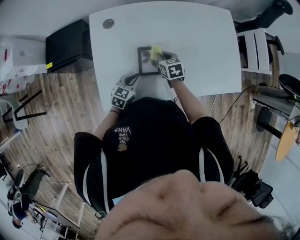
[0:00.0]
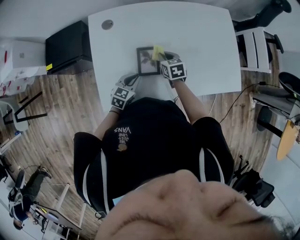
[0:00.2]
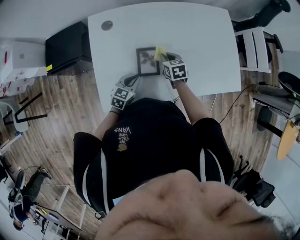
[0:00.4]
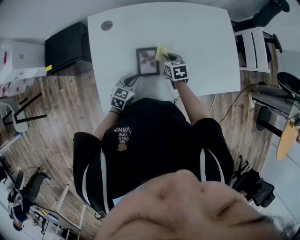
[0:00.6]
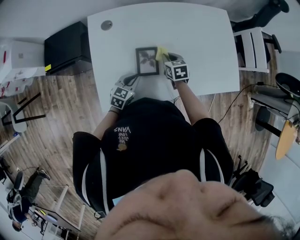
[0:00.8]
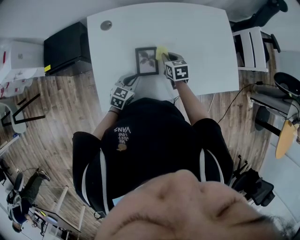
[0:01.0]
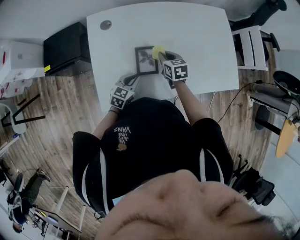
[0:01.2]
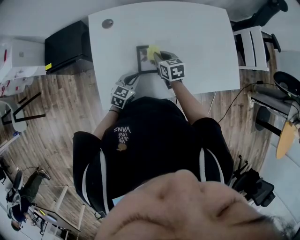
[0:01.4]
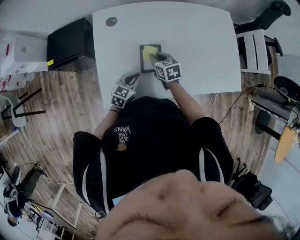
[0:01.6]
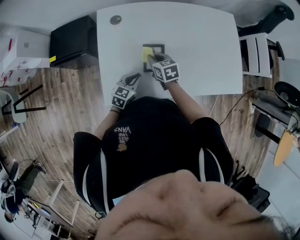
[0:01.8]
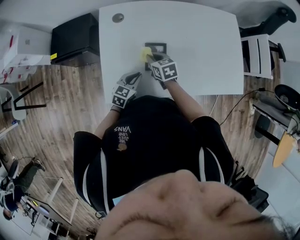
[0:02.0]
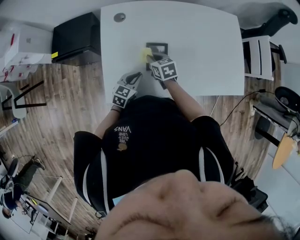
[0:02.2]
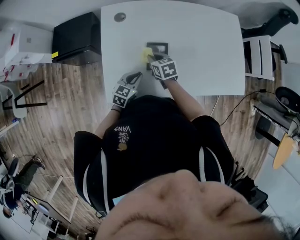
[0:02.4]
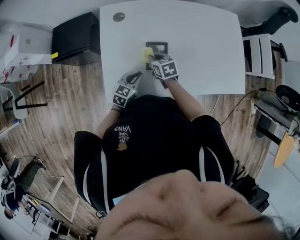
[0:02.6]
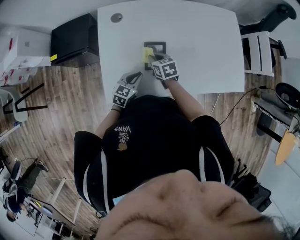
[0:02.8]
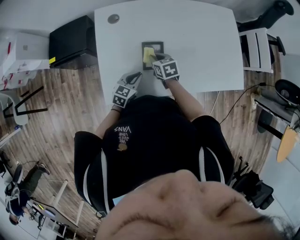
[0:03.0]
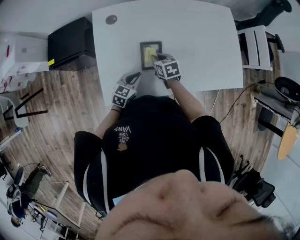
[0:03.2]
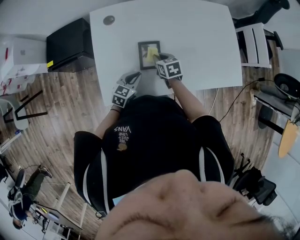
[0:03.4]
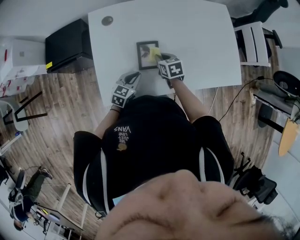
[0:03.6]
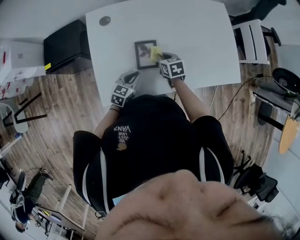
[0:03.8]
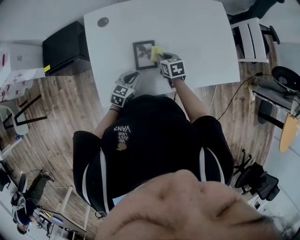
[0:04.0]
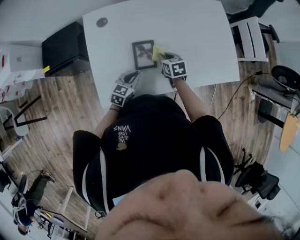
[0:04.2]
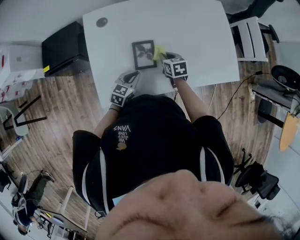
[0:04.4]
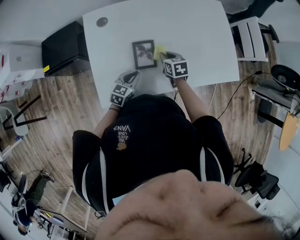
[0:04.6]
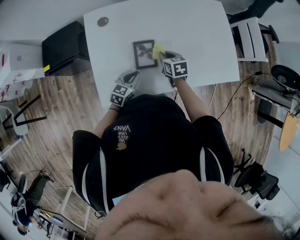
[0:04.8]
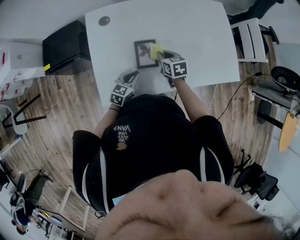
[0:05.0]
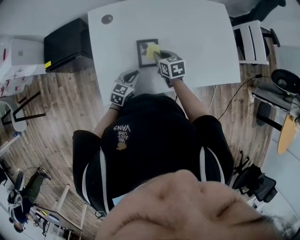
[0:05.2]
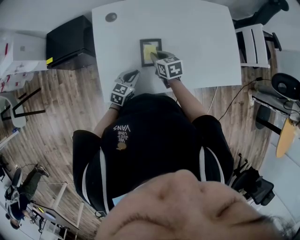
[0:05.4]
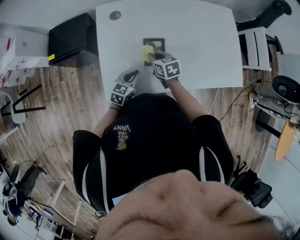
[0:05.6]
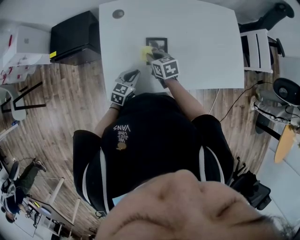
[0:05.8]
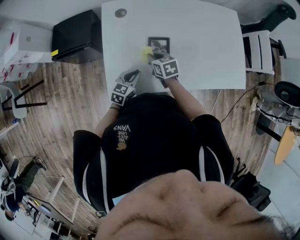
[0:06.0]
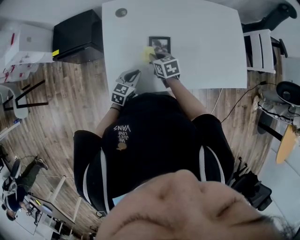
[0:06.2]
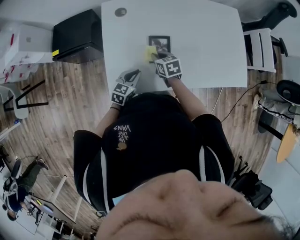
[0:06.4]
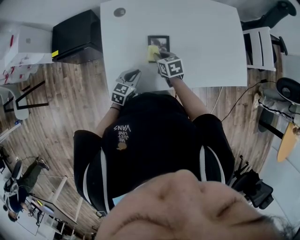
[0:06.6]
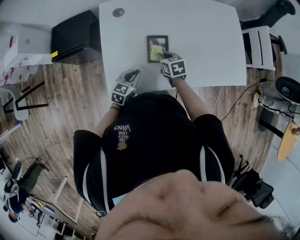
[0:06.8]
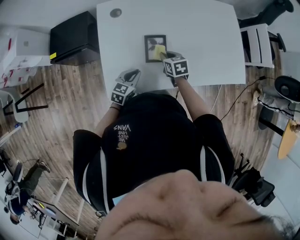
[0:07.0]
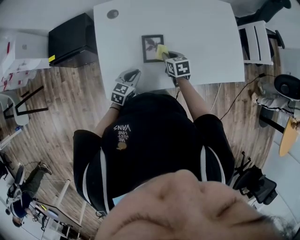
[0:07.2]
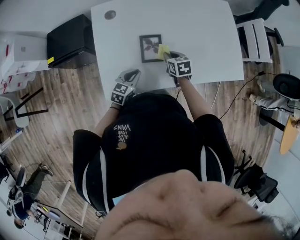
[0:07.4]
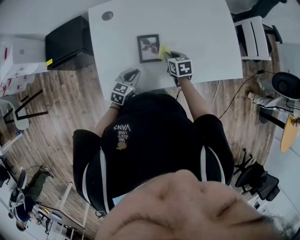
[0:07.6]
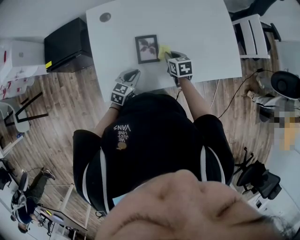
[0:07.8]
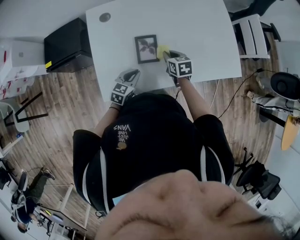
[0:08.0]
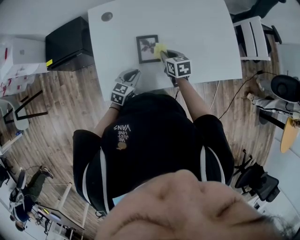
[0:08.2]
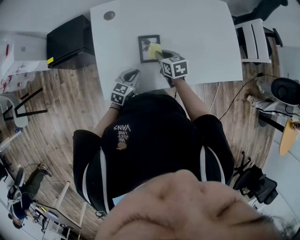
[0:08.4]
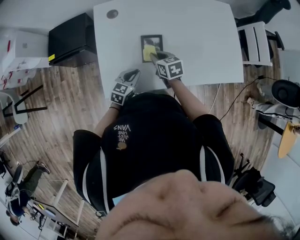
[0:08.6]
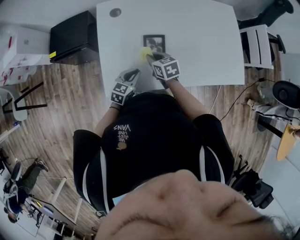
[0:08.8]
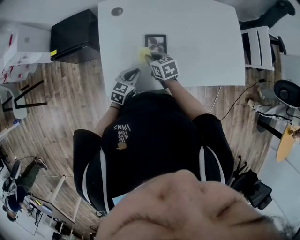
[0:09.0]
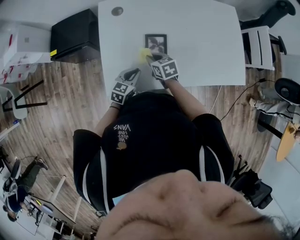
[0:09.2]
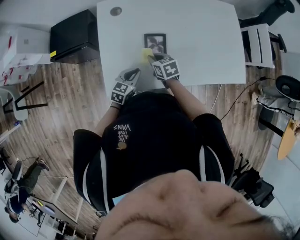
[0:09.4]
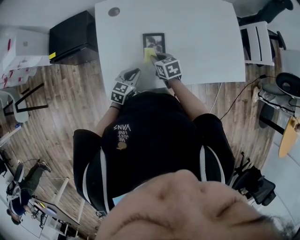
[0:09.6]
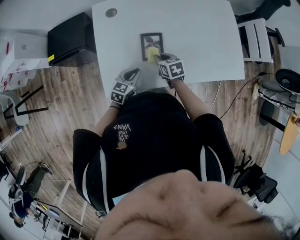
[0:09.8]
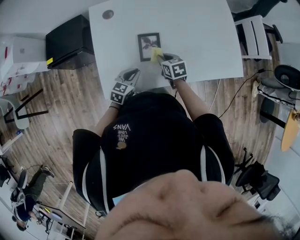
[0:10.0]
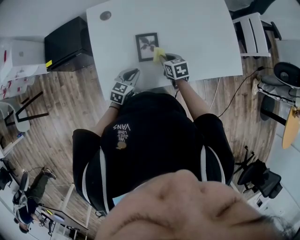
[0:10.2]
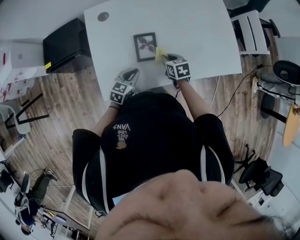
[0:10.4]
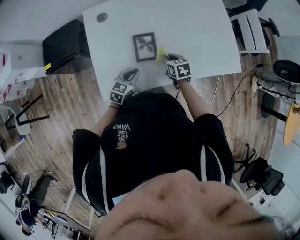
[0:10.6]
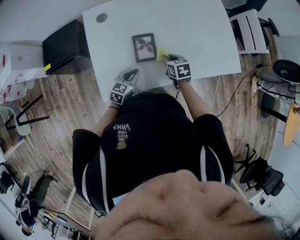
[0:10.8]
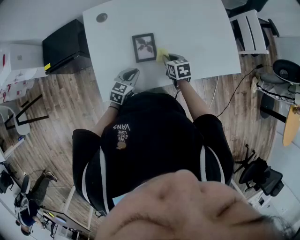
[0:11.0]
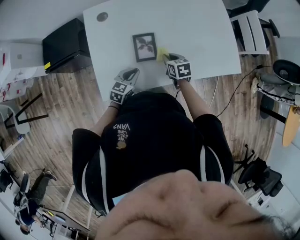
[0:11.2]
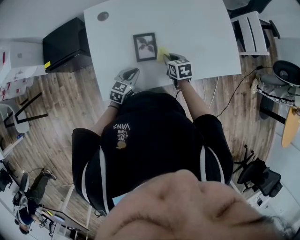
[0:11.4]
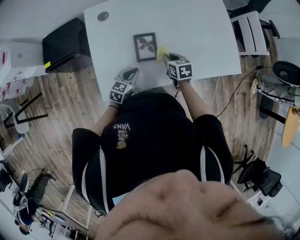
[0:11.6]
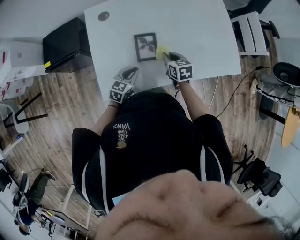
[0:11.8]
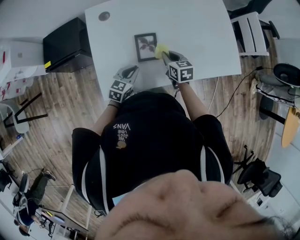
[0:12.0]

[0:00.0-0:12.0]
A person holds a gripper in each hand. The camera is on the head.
0:00.0 to 0:01.6: The right gripper changes place by roughly 5 cm.
0:01.6 to 0:03.0: The grippers move only a little.
0:03.0 to 0:04.4: The right gripper is displaced to the right by approximately 10 cm.
0:04.4 to 0:06.0: The right gripper travels to the left by approximately 15 cm, while the left gripper goes approximately 5 cm to the left.
0:06.0 to 0:07.6: The right gripper heads to the right, covering roughly 15 cm.
0:07.6 to 0:09.0: The right gripper heads to the left, covering approximately 15 cm.
0:09.0 to 0:10.4: The right gripper shifts approximately 10 cm to the right.
0:10.4 to 0:12.0: The grippers move only a little.

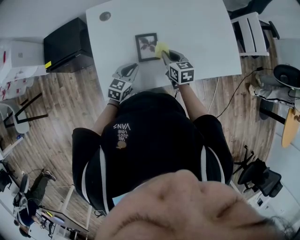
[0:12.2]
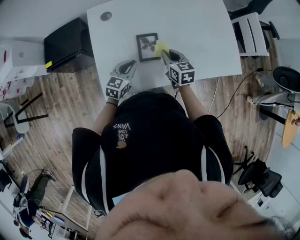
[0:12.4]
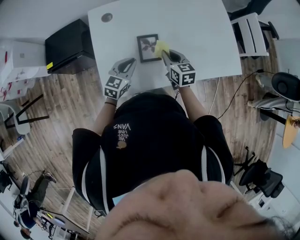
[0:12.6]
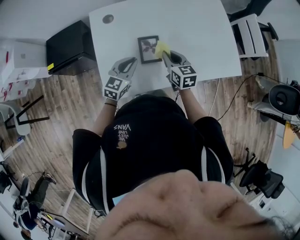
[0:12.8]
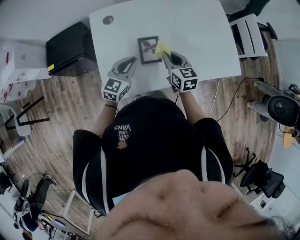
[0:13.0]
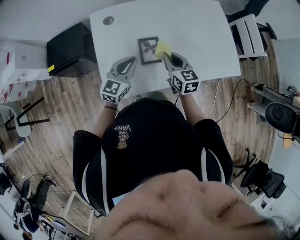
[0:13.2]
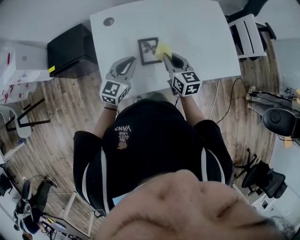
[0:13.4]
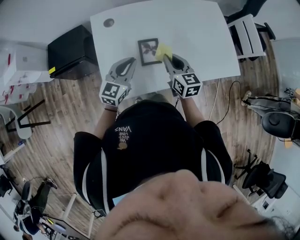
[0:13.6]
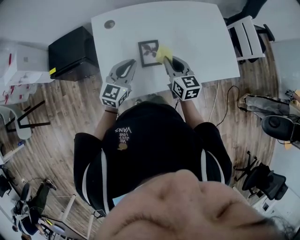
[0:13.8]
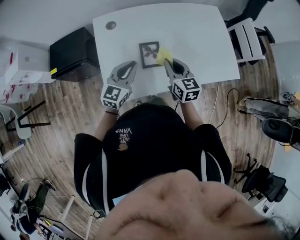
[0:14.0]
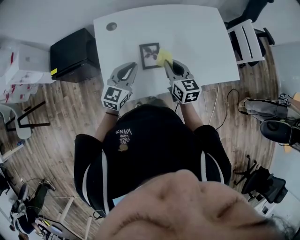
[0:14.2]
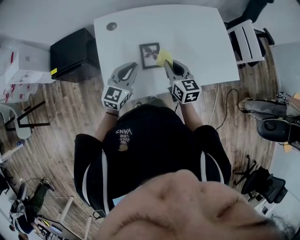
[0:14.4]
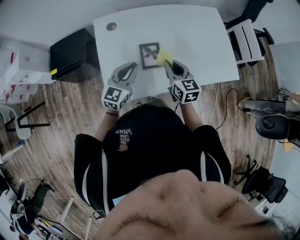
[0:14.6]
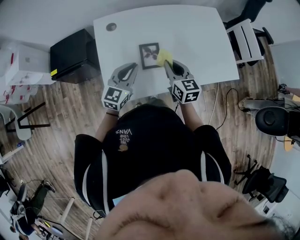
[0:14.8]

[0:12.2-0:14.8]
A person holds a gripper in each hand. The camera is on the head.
0:12.2 to 0:13.4: The two grippers go roughly 10 cm upward.
0:13.4 to 0:14.8: The grippers stay close to where they were, moving slightly.

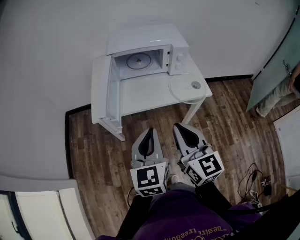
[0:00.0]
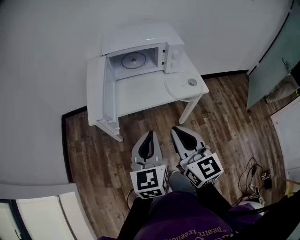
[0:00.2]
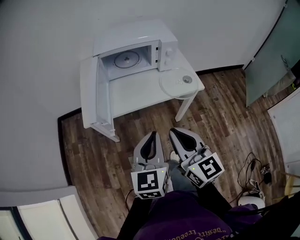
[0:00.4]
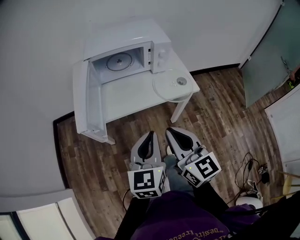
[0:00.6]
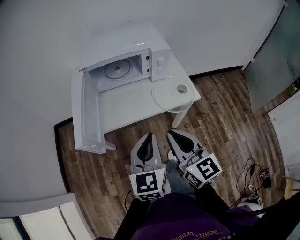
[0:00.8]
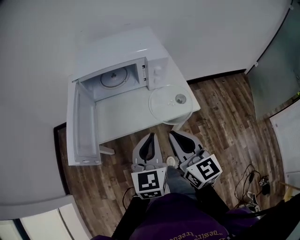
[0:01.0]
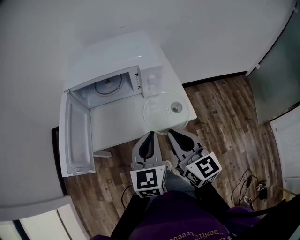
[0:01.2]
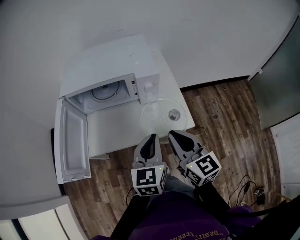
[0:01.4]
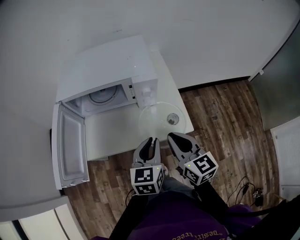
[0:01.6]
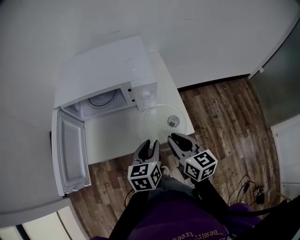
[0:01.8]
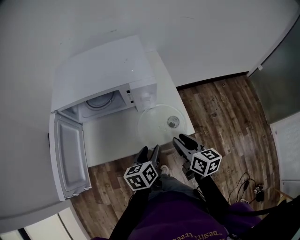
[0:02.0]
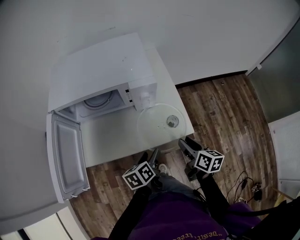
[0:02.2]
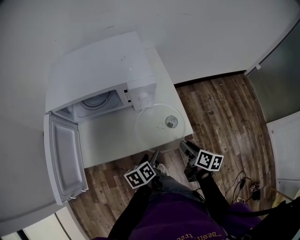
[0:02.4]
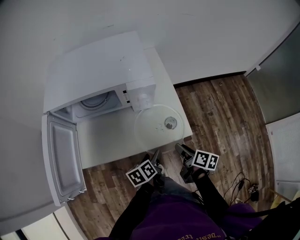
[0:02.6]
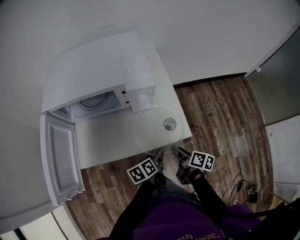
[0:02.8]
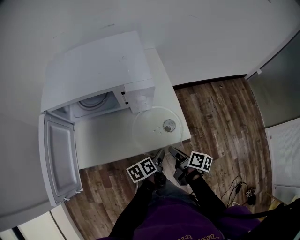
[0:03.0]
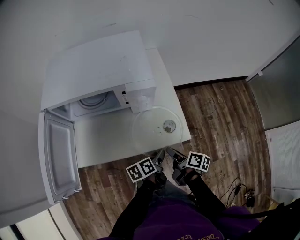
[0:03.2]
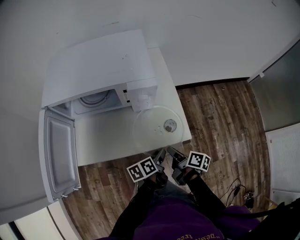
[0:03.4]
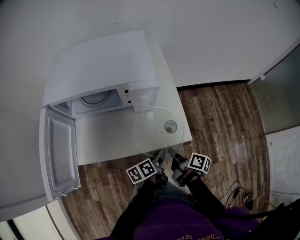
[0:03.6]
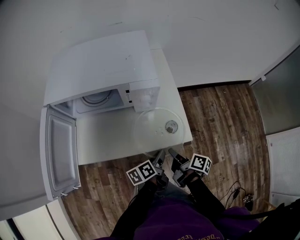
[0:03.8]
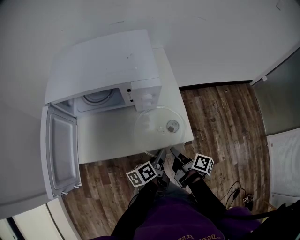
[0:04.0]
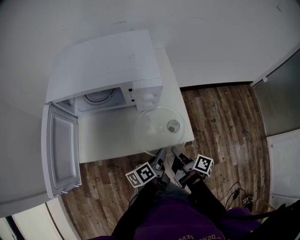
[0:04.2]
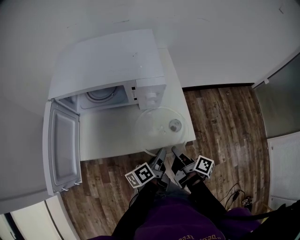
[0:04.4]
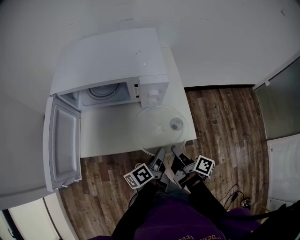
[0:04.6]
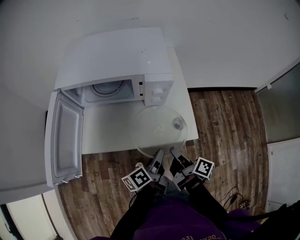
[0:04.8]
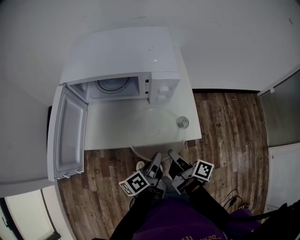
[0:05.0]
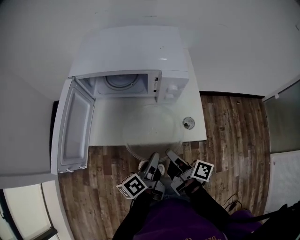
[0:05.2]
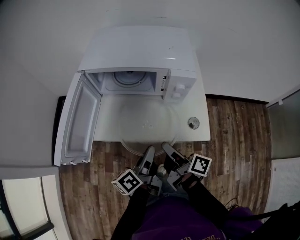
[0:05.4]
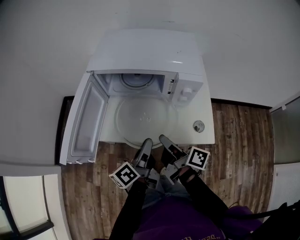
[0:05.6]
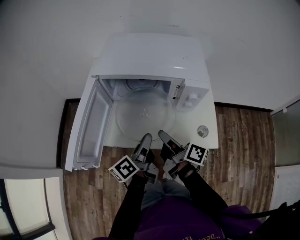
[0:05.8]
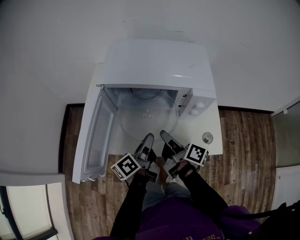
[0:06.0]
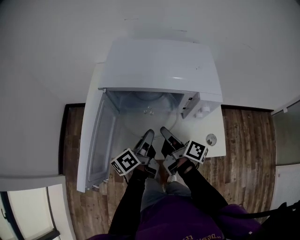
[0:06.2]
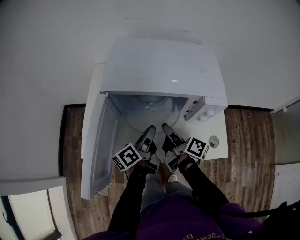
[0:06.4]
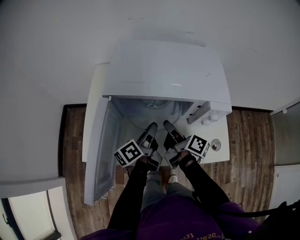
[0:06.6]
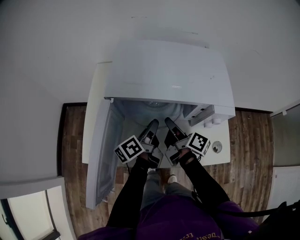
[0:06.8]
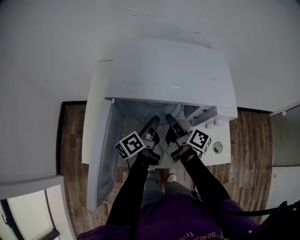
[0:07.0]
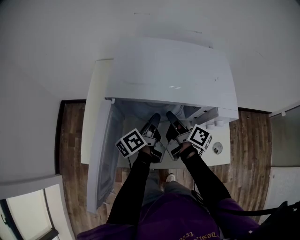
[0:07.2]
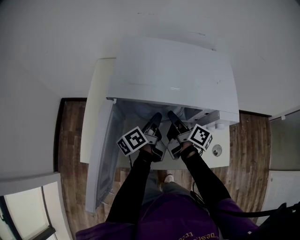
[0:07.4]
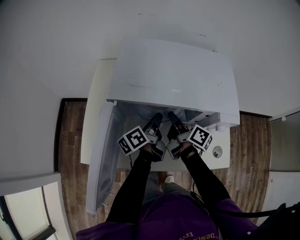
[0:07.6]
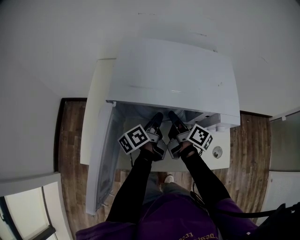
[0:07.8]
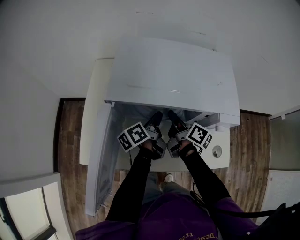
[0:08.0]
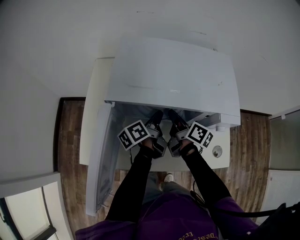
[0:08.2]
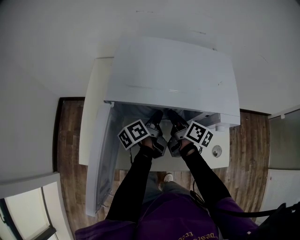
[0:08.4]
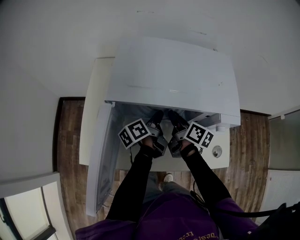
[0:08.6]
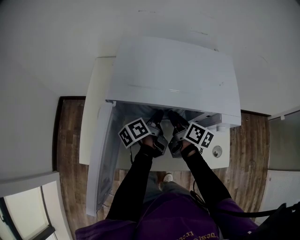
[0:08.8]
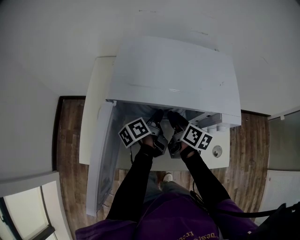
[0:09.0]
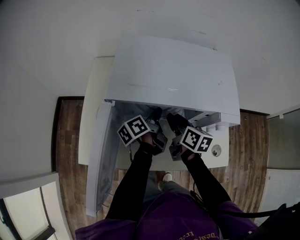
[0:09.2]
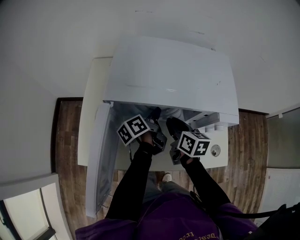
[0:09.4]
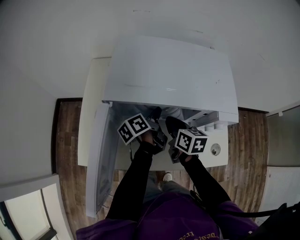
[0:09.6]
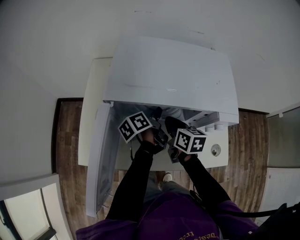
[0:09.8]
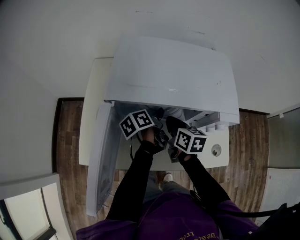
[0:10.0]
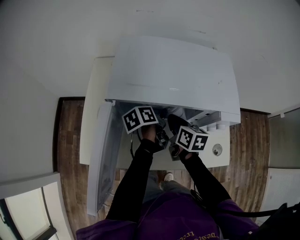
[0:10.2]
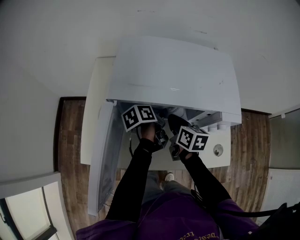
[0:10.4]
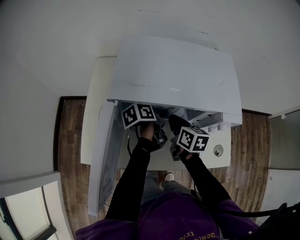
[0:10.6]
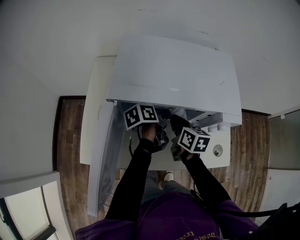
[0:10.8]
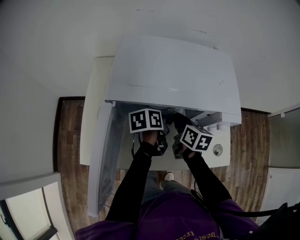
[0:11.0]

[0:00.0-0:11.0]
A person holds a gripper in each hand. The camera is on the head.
0:00.0 to 0:01.6: The left gripper heads to the right, forward and downward, covering about 35 cm, while the right gripper shifts roughly 30 cm forward, to the right and downward.
0:01.6 to 0:03.2: The two grippers go some 20 cm downward. The left gripper rotates around the line of its fingers by roughly 50 degrees, counterclockwise from behind, and opens up, while the right gripper rolls clockwise, seen from behind, by roughly 60 degrees, and opens its fingers.
0:03.2 to 0:04.8: Both grippers travel together upward, approximately 5 cm. The left gripper swivels some 30 degrees, and closes up. Meanwhile the right gripper closes up.
0:04.8 to 0:06.2: The grippers both shift to the left and forward by roughly 25 cm.
0:06.2 to 0:07.8: The two grippers go about 15 cm forward.
0:07.8 to 0:09.4: The right gripper swivels about 40 degrees.
0:09.4 to 0:11.0: The left gripper ends up approximately 5 cm from where it was, swivels some 30 degrees, and opens up. The right gripper closes its fingers.
